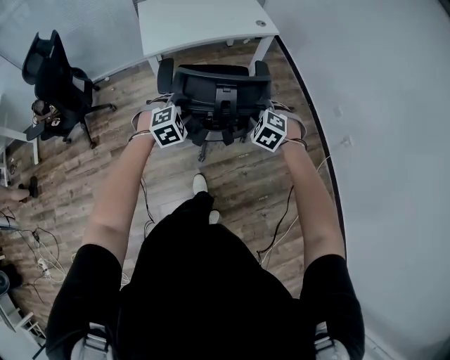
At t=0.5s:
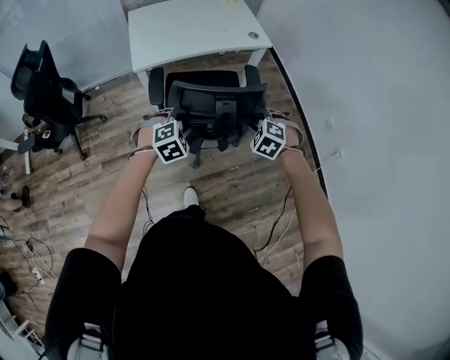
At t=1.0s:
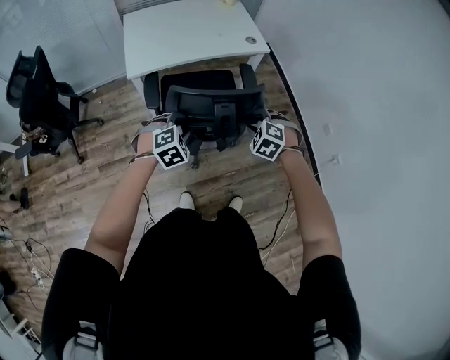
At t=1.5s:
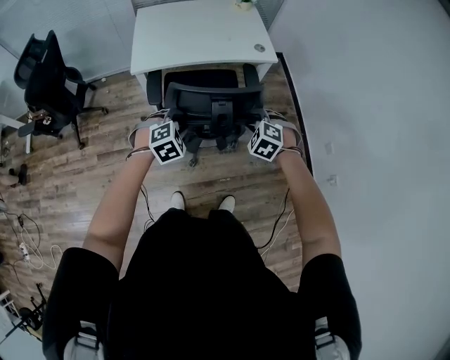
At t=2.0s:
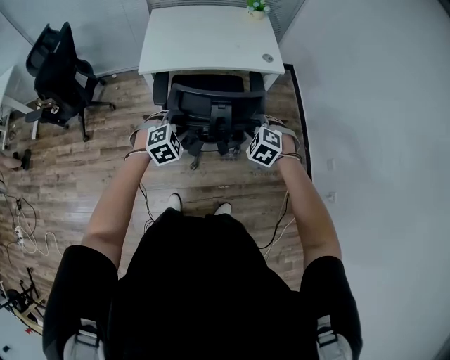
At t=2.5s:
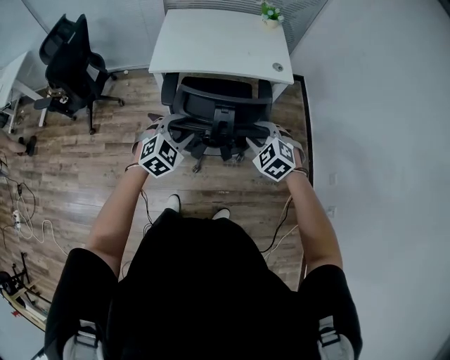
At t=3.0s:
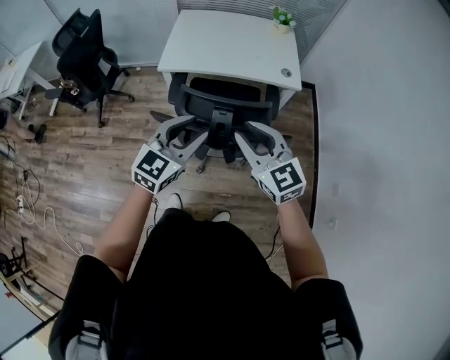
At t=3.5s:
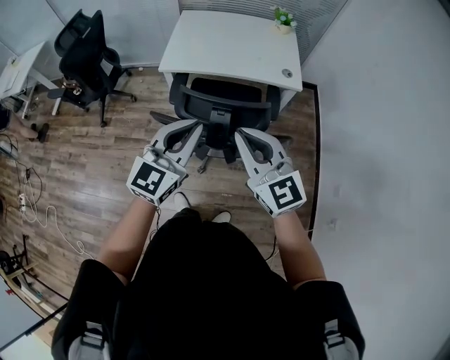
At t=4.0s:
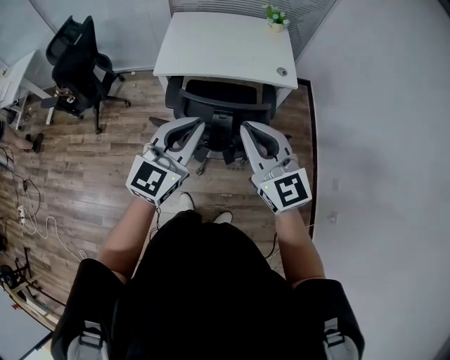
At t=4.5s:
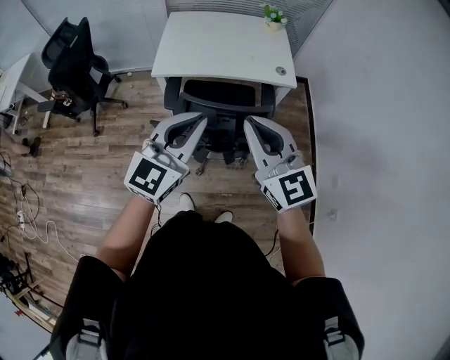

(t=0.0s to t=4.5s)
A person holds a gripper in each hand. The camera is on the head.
t=0.0s - t=2.0s: The right gripper goes approximately 20 cm forward. The left gripper shifts approximately 15 cm forward and to the right.
t=2.0s - t=4.5s: Both grippers move upward, approximately 25 cm. The right gripper tips its fingers upward by some 60 degrees, and closes its fingers. Meanwhile the left gripper tilts its fingers approximately 50 degrees upward, and closes its fingers.

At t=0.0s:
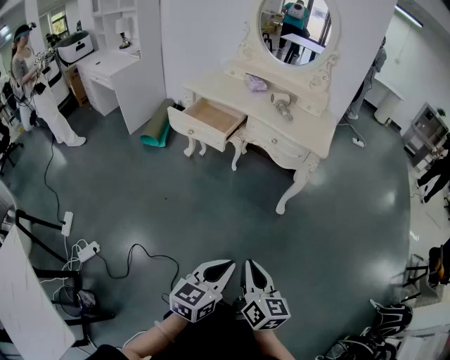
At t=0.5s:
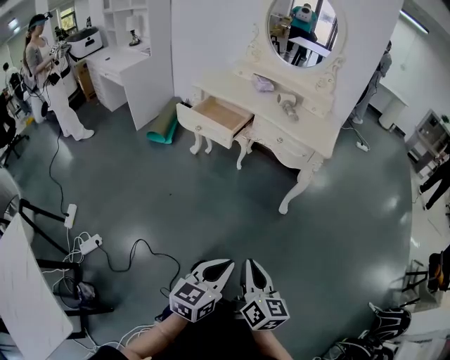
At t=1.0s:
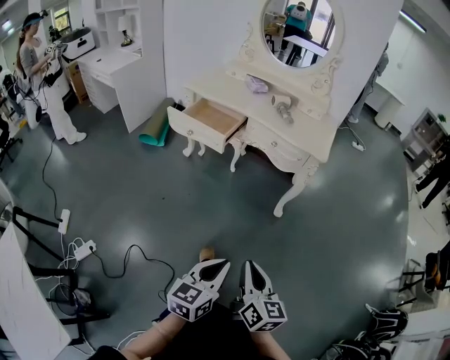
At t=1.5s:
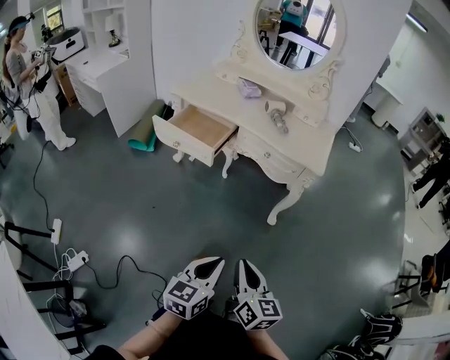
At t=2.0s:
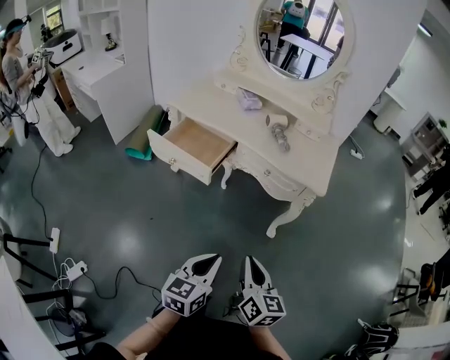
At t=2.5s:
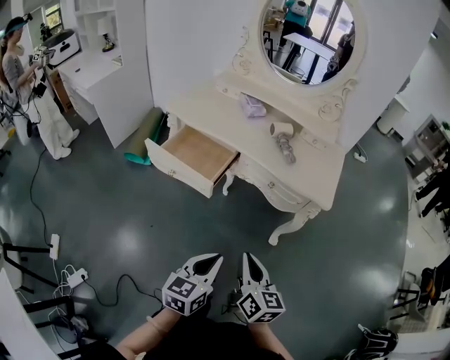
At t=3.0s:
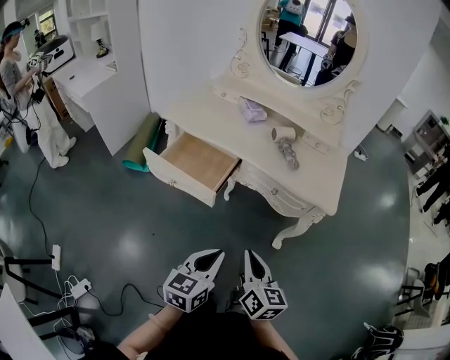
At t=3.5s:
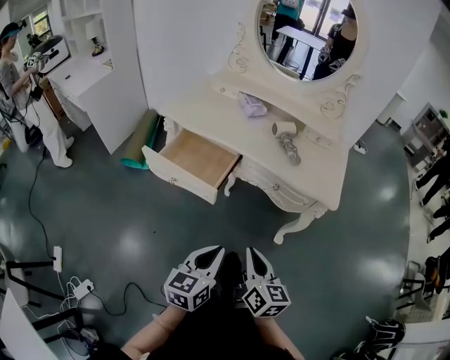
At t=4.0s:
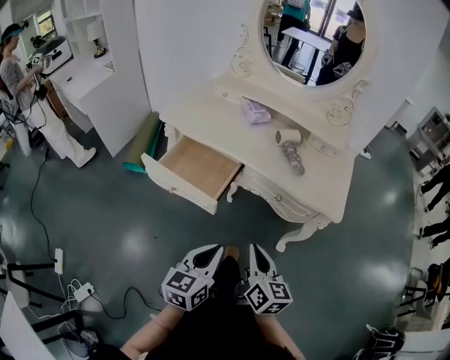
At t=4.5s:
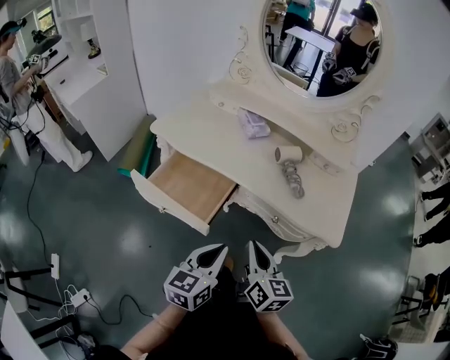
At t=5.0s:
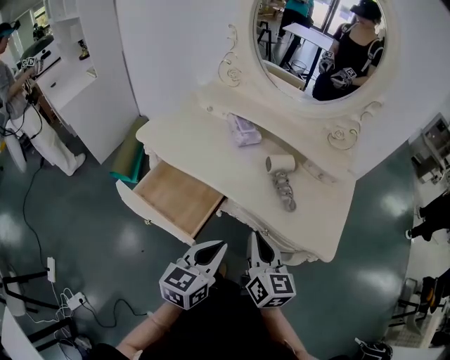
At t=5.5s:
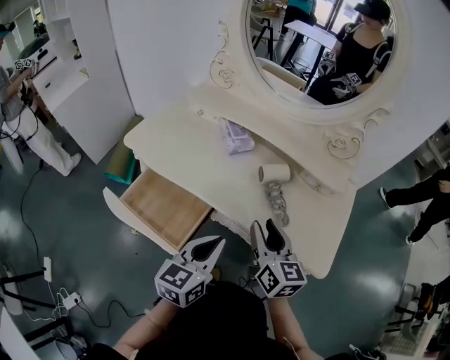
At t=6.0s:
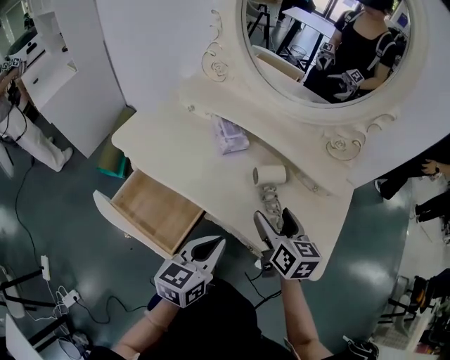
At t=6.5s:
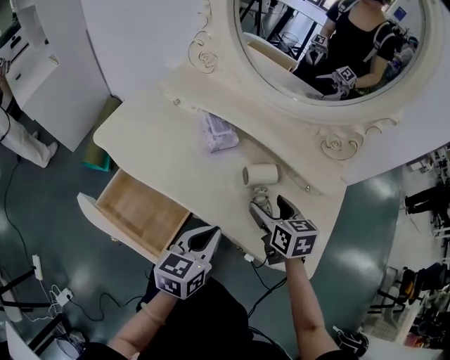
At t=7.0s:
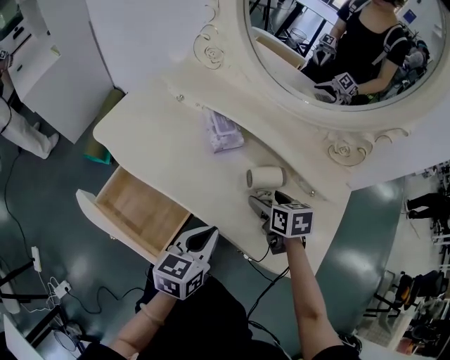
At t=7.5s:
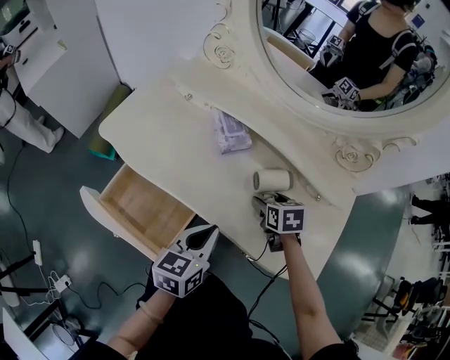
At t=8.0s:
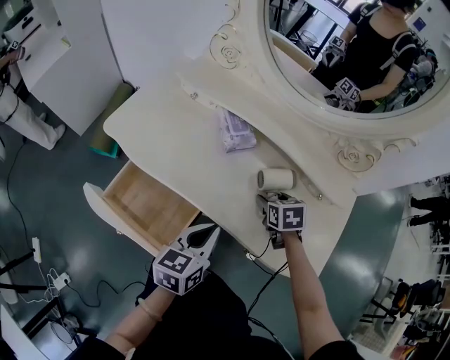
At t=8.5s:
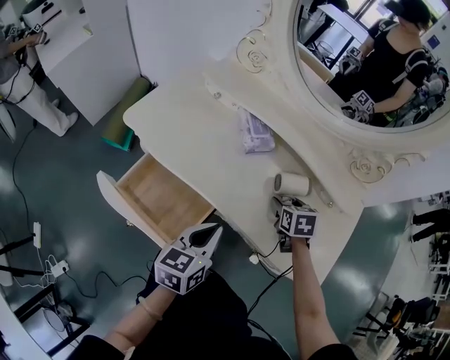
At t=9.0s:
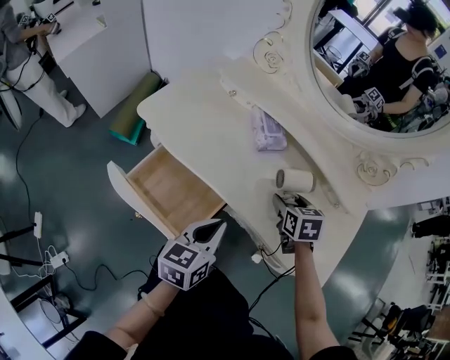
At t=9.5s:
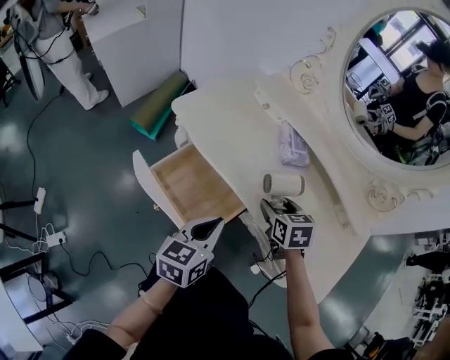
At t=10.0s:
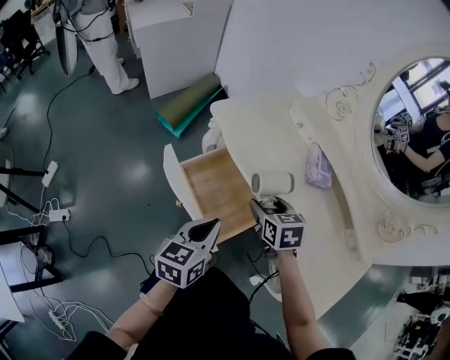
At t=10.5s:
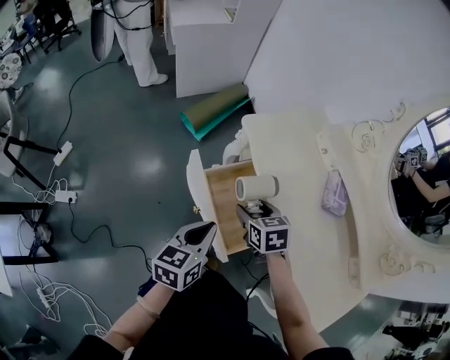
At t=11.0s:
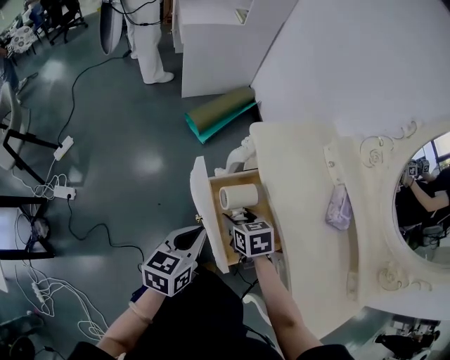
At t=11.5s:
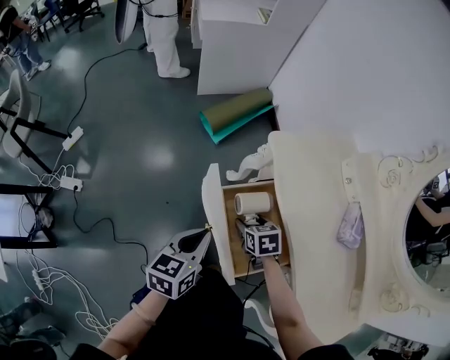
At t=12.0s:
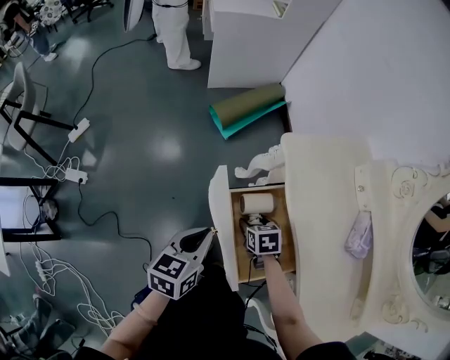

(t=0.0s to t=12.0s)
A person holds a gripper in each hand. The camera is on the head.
t=0.0s - t=2.0s: The two grippers go roughly 20 cm forward.
t=2.0s - t=4.0s: The right gripper shifts approximately 15 cm forward; the left gripper goes about 20 cm forward and to the left.
t=4.0s - t=6.0s: Both grippers move forward, roughly 30 cm. The right gripper opens its fingers.
t=6.0s - t=8.0s: The left gripper heads forward, covering some 5 cm. Meanwhile the right gripper shifts about 15 cm downward and forward, and tips its fingers downward by approximately 30 degrees.
t=8.0s - t=10.0s: The right gripper changes place by about 30 cm, and turns by roughly 30 degrees. Meanwhile the left gripper changes place by roughly 20 cm, and turns by approximately 30 degrees.
t=10.0s - t=12.0s: The left gripper moves to the left, forward and downward, some 15 cm, and turns by approximately 20 degrees. The right gripper goes roughly 25 cm downward and to the left, and turns by roughly 30 degrees.

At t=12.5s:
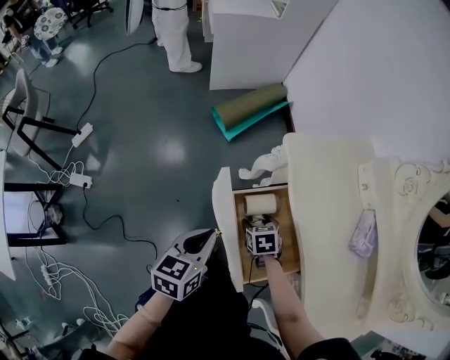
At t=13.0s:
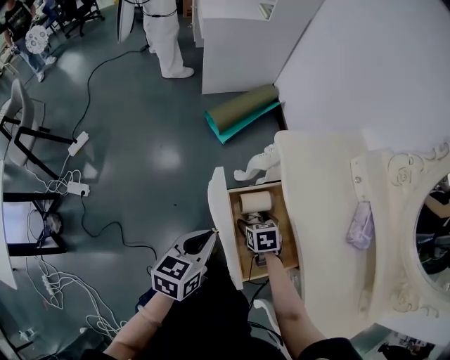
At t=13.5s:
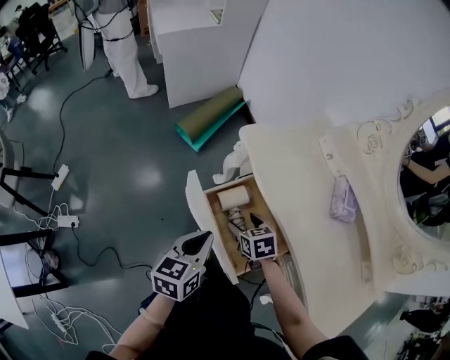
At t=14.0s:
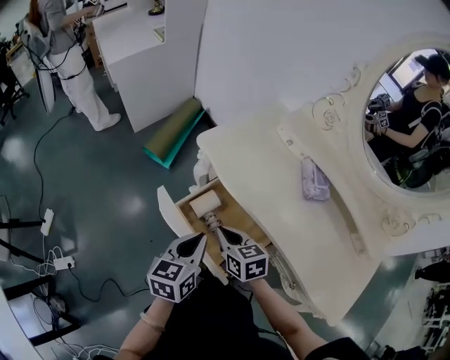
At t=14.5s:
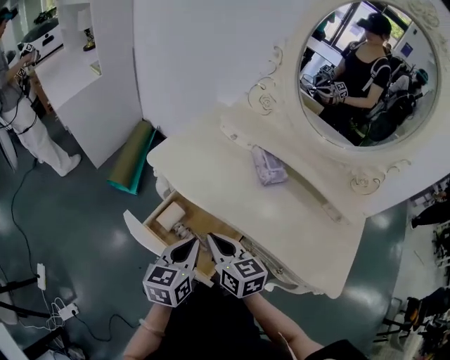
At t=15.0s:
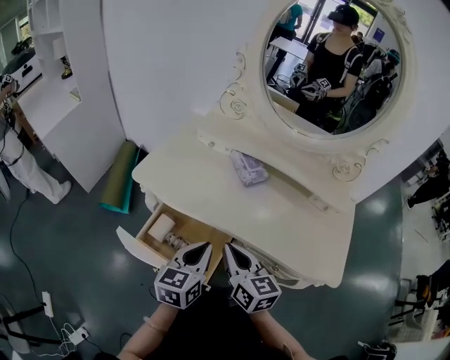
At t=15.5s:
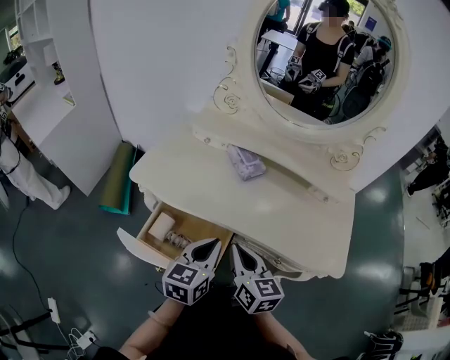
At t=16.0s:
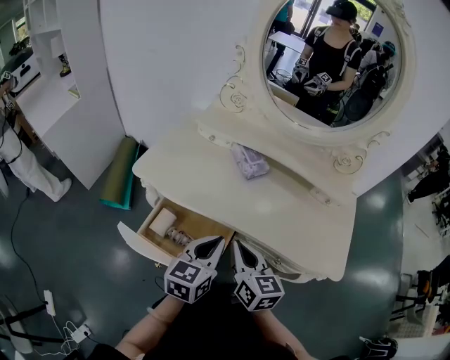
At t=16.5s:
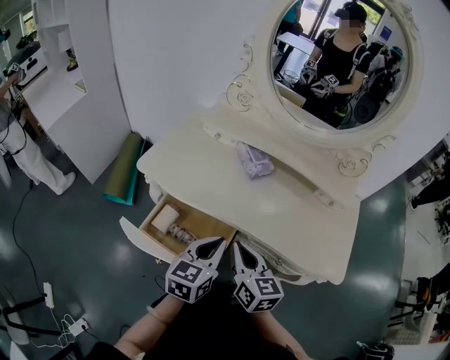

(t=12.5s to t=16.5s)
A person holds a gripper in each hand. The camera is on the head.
t=12.5s - t=14.5s: The right gripper shifts approximately 25 cm upward, tilts its fingers about 40 degrees upward, and closes up. The left gripper shifts by roughly 15 cm, and turns by roughly 40 degrees.
t=14.5s - t=16.5s: The two grippers go approximately 10 cm to the right. The left gripper swivels roughly 20 degrees. The right gripper turns by about 20 degrees.

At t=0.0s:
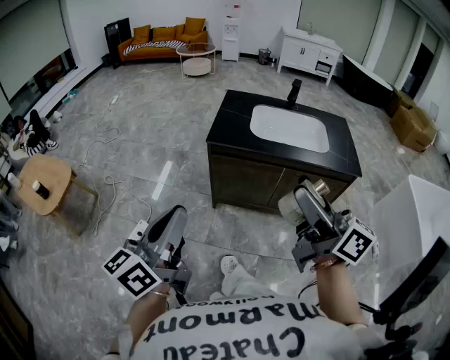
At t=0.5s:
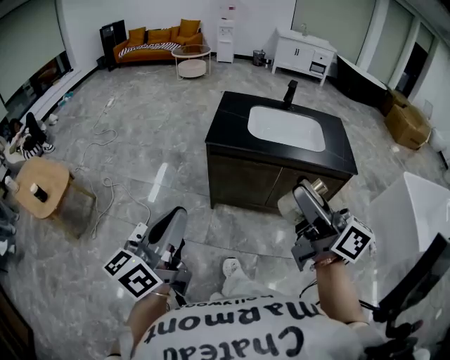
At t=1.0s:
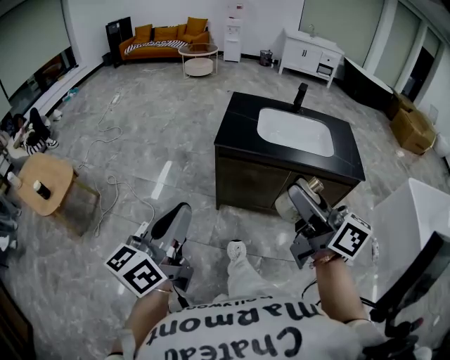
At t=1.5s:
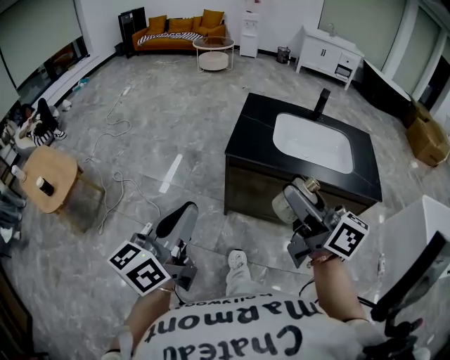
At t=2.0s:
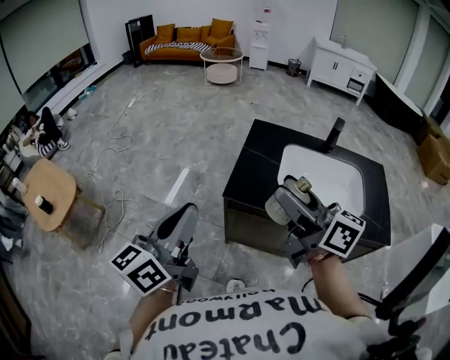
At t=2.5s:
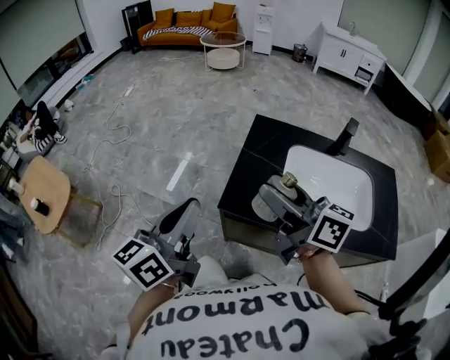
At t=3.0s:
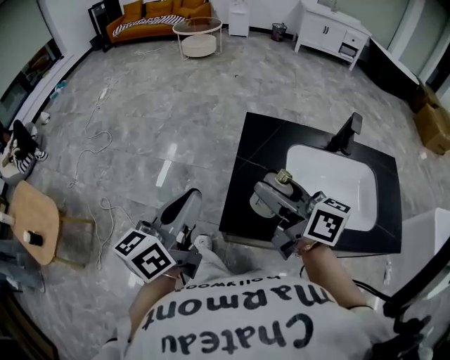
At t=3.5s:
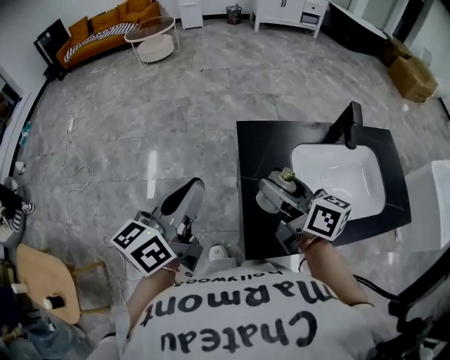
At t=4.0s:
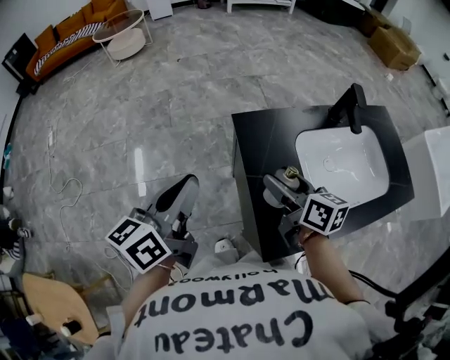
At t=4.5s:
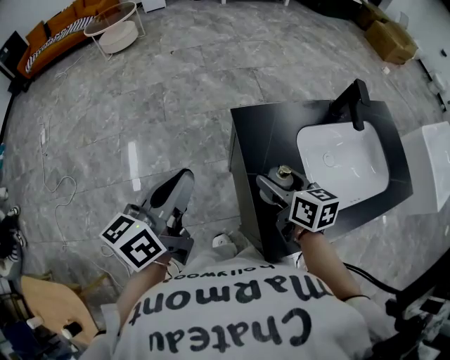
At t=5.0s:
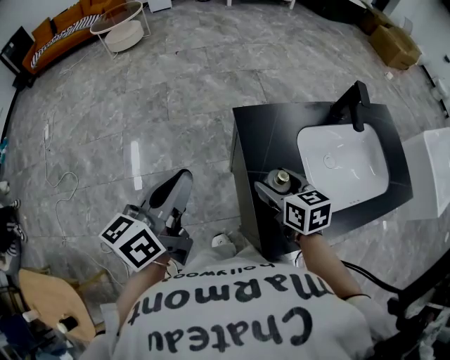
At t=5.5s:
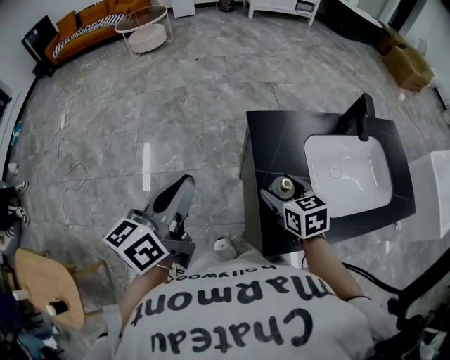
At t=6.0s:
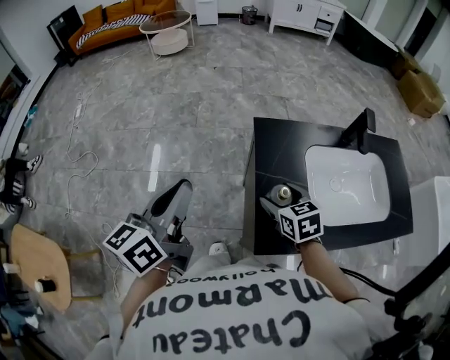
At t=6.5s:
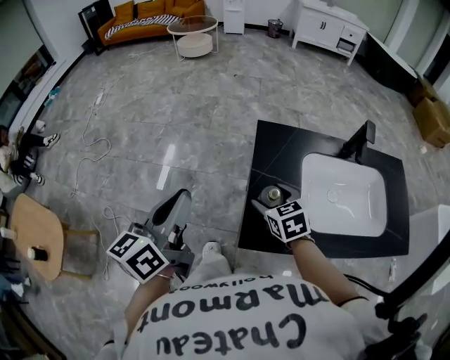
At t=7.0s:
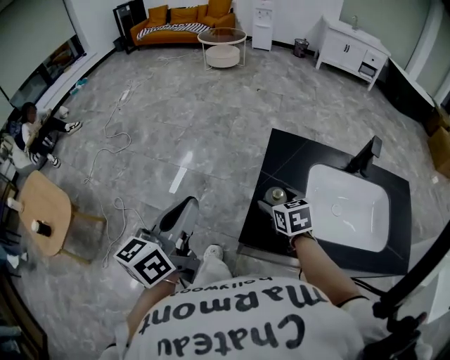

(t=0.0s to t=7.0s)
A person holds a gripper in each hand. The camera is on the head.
t=0.0s - t=2.0s: The two grippers go about 30 cm forward.
t=2.0s - t=3.5s: The grippers both shift forward by some 35 cm. The left gripper turns by approximately 30 degrees. Meanwhile the right gripper rotates some 30 degrees.
t=3.5s - t=5.0s: The right gripper moves downward, roughly 15 cm, and swivels some 40 degrees; the left gripper is displaced forward and downward by about 10 cm.
t=5.0s - t=7.0s: The right gripper shifts approximately 5 cm backward, and turns by about 30 degrees. Meanwhile the left gripper shifts some 25 cm backward, and swivels approximately 30 degrees.
